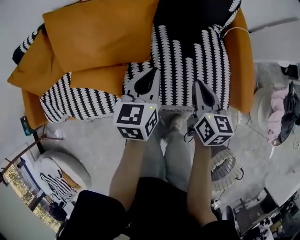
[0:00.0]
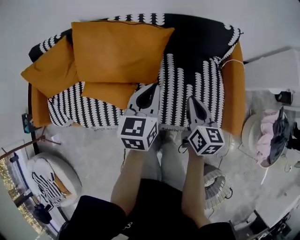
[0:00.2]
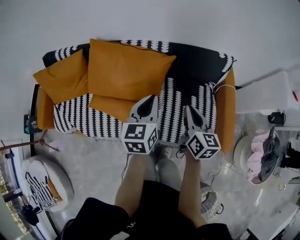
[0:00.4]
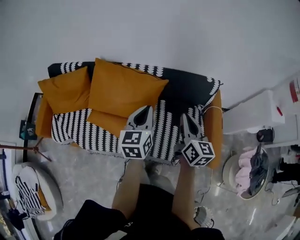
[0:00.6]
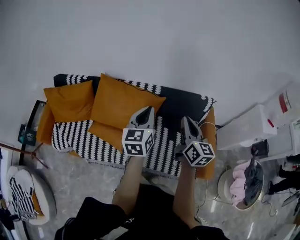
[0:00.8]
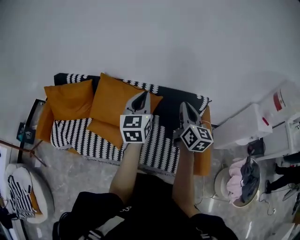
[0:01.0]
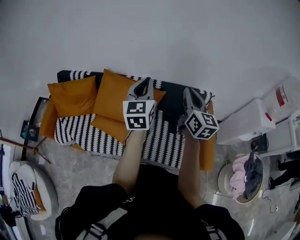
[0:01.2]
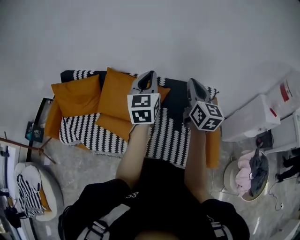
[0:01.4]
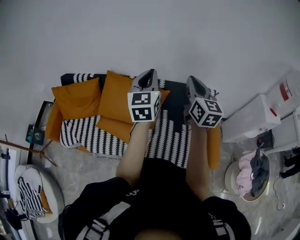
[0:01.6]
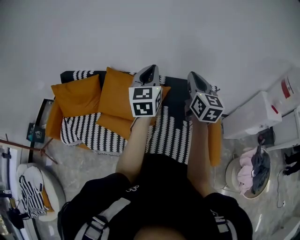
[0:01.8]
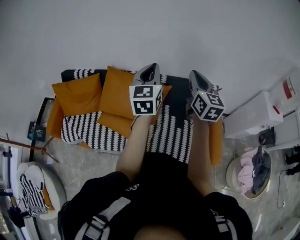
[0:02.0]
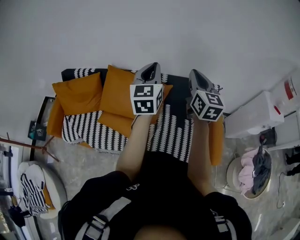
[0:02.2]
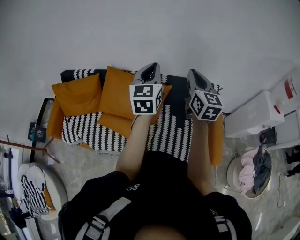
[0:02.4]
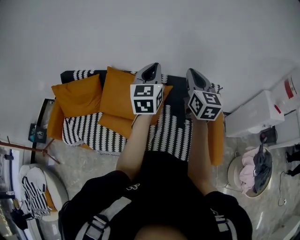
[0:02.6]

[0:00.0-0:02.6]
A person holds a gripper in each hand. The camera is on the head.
0.0 to 1.2 s: The grippers both shift upward by some 40 cm. The right gripper turns by some 30 degrees. The left gripper turns by some 40 degrees.
1.2 to 2.6 s: The grippers both shift forward by roughly 5 cm.

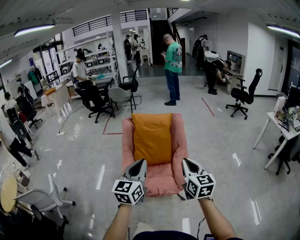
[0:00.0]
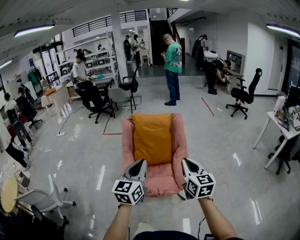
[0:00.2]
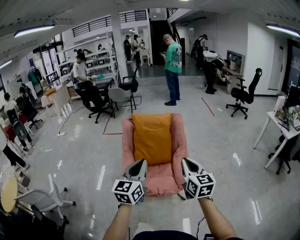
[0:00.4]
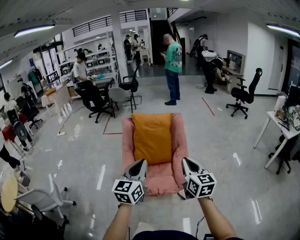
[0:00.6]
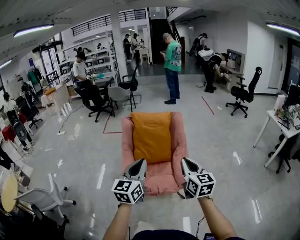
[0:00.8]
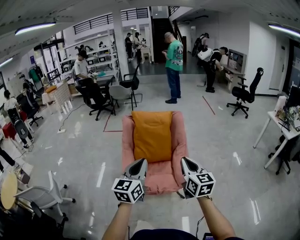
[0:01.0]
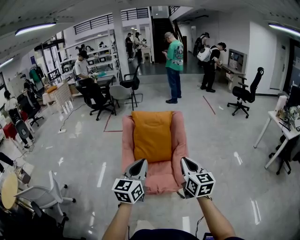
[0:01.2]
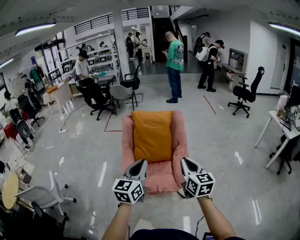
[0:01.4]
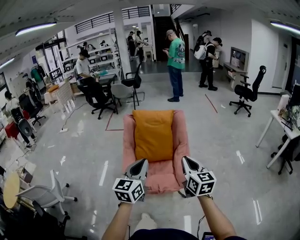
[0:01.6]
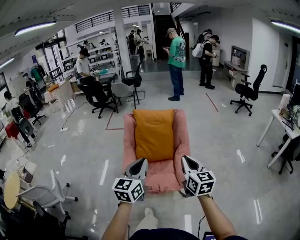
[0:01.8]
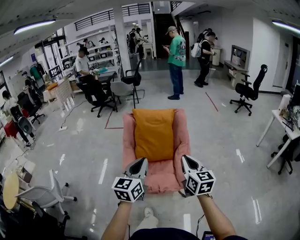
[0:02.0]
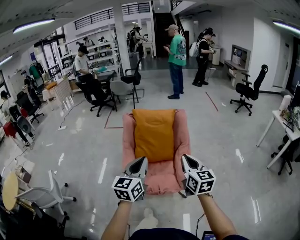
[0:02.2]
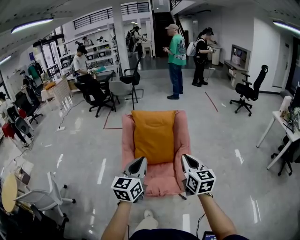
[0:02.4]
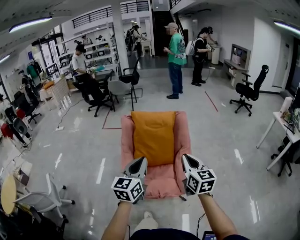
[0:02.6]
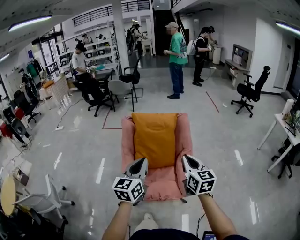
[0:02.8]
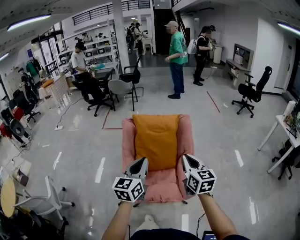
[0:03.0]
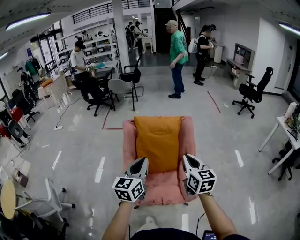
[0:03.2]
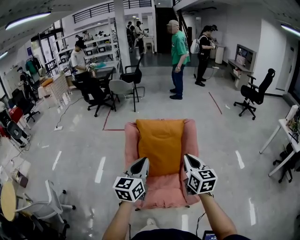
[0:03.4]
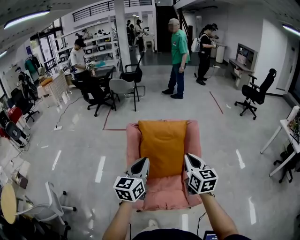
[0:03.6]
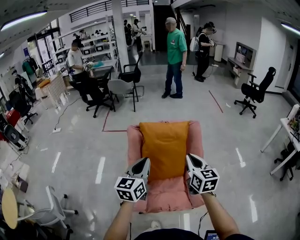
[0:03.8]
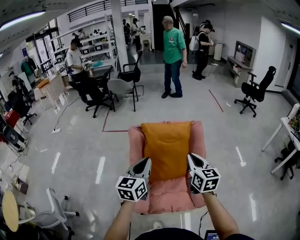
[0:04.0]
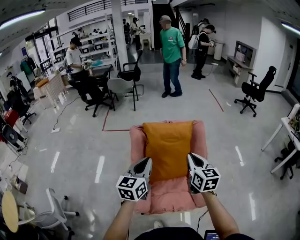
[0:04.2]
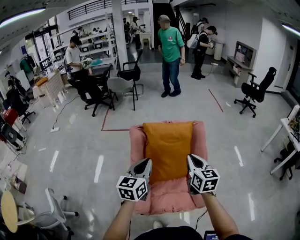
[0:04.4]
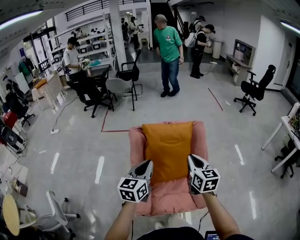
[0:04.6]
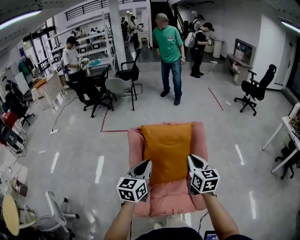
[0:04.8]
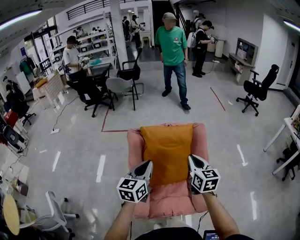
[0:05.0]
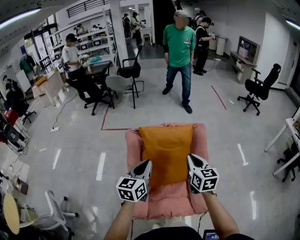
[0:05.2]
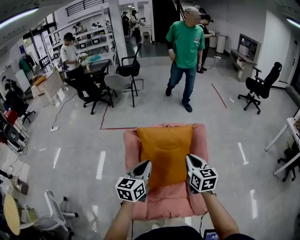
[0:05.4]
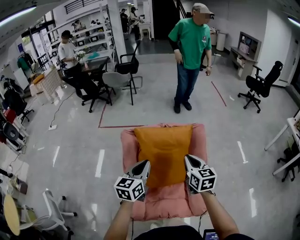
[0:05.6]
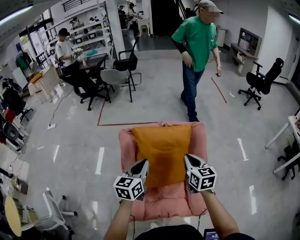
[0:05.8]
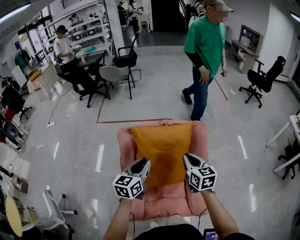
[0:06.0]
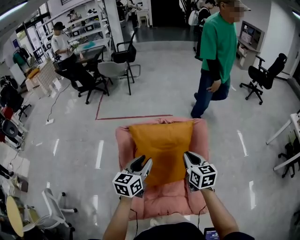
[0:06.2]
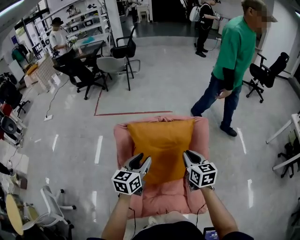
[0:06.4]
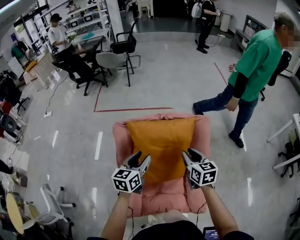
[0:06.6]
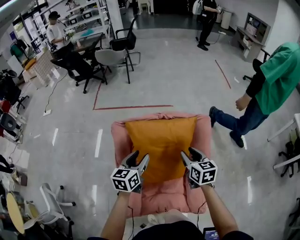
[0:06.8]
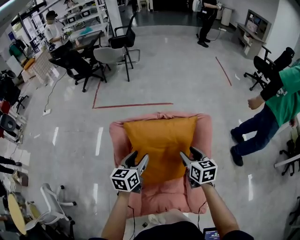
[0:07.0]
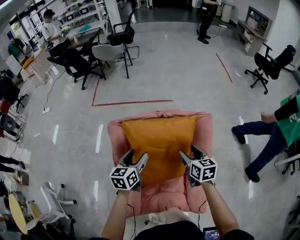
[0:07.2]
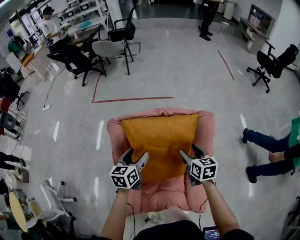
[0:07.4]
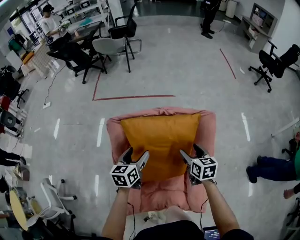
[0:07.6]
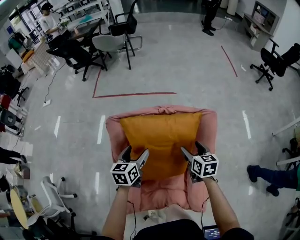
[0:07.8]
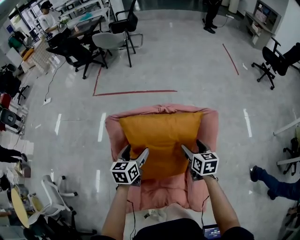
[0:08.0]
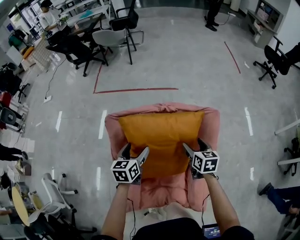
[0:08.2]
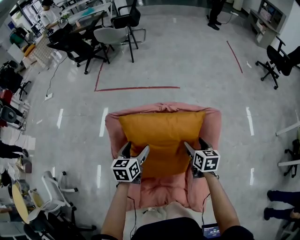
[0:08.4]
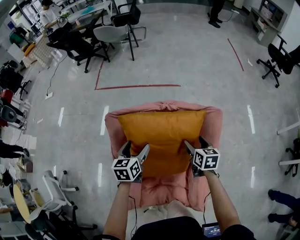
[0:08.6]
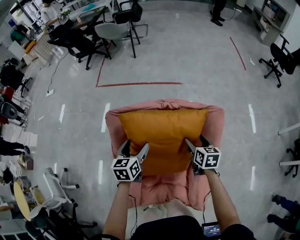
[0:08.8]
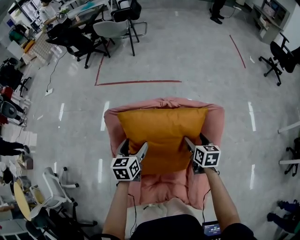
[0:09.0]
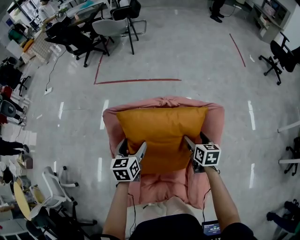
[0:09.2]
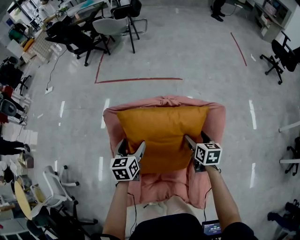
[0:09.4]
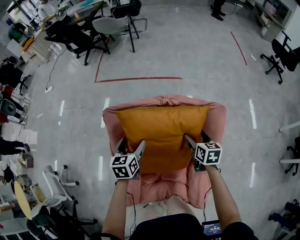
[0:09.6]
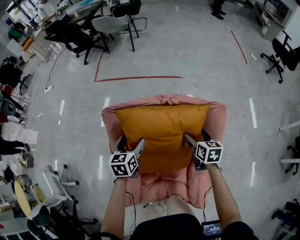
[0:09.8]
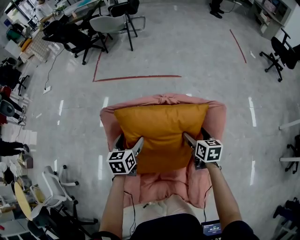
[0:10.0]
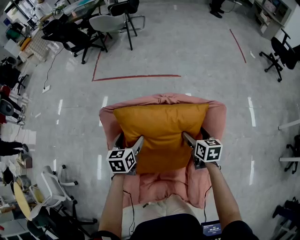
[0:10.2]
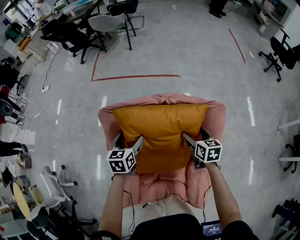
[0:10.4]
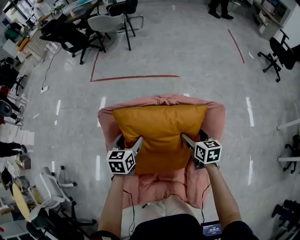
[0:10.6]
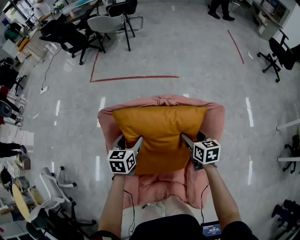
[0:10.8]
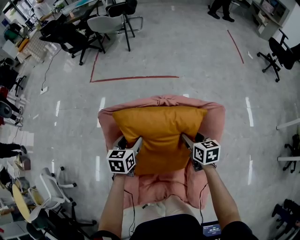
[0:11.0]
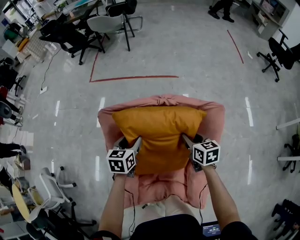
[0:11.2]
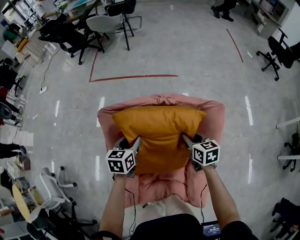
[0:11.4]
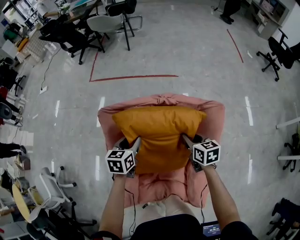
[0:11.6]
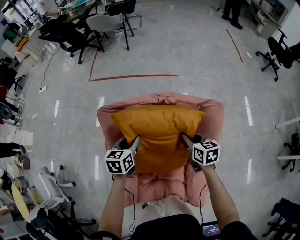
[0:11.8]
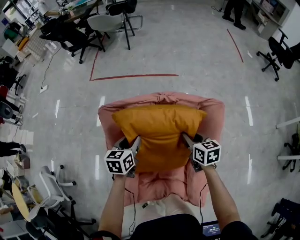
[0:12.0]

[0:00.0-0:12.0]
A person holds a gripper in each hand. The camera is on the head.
0.0 to 1.6 s: The grippers move only a little.
1.6 to 3.0 s: The grippers both shift forward by roughly 15 cm.
3.0 to 4.4 s: The grippers both shift forward and to the left by roughly 15 cm.
4.4 to 6.0 s: The two grippers go roughly 15 cm forward and downward.
6.0 to 7.6 s: Both grippers move downward and forward, some 15 cm. The right gripper opens its fingers; the left gripper opens up.
7.6 to 9.0 s: The right gripper travels downward and forward by approximately 10 cm.
9.0 to 10.4 s: The grippers make only small movements.
10.4 to 12.0 s: The right gripper closes up. The left gripper closes up.

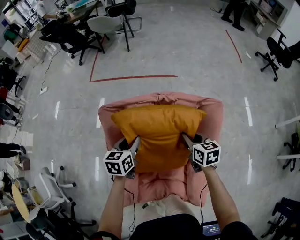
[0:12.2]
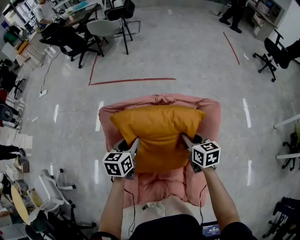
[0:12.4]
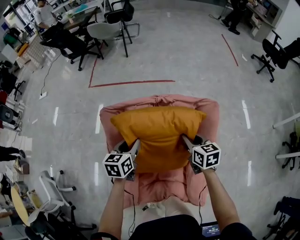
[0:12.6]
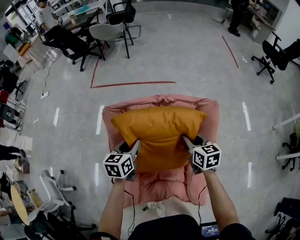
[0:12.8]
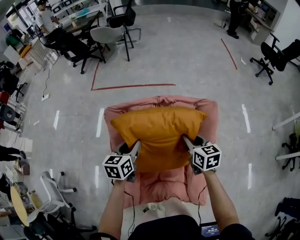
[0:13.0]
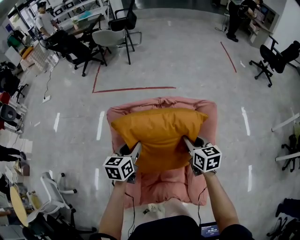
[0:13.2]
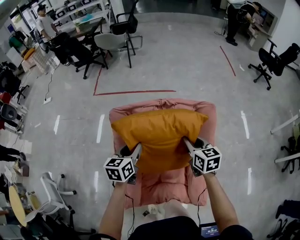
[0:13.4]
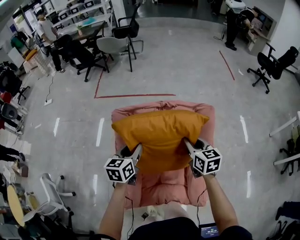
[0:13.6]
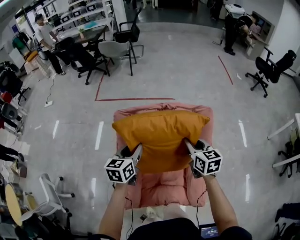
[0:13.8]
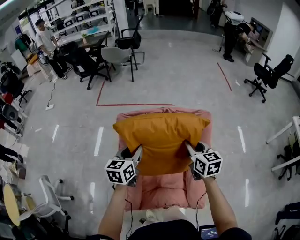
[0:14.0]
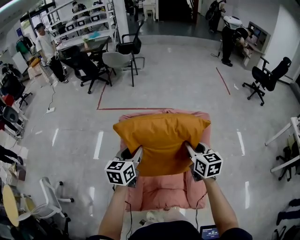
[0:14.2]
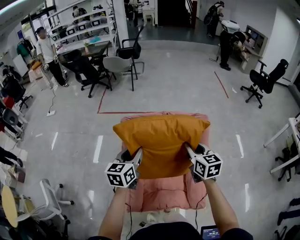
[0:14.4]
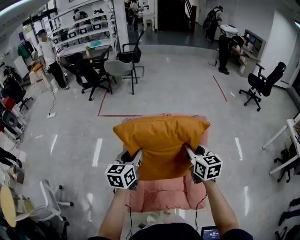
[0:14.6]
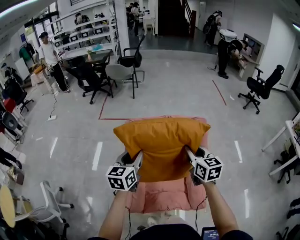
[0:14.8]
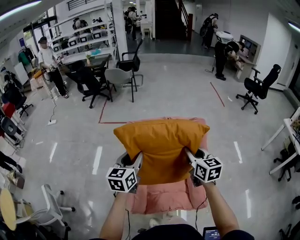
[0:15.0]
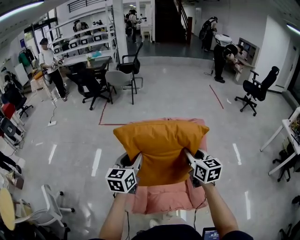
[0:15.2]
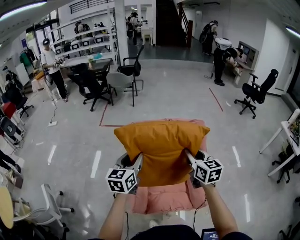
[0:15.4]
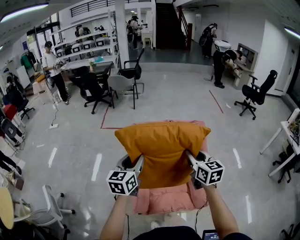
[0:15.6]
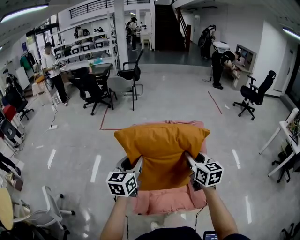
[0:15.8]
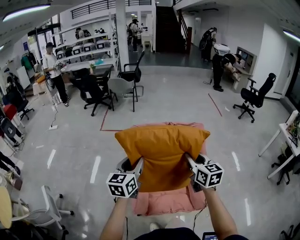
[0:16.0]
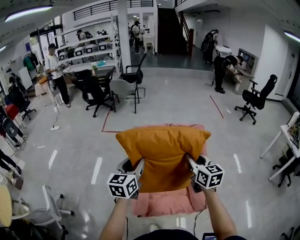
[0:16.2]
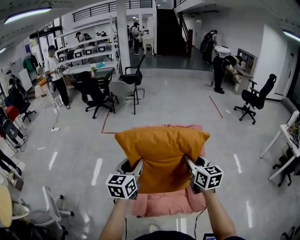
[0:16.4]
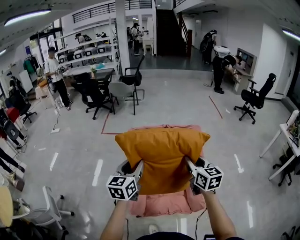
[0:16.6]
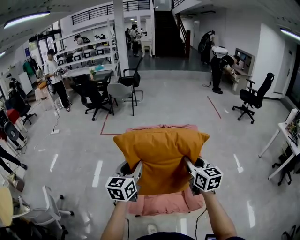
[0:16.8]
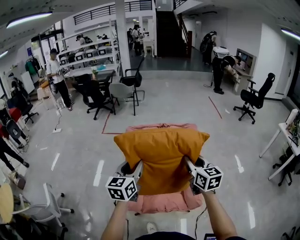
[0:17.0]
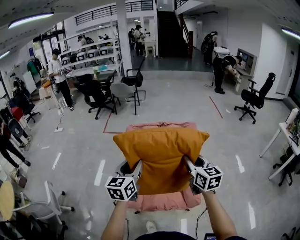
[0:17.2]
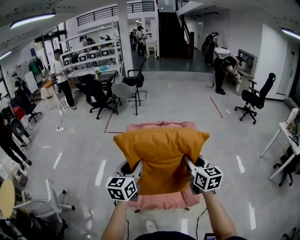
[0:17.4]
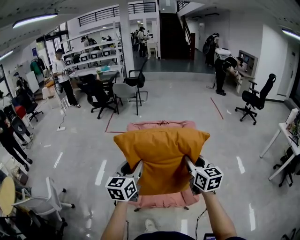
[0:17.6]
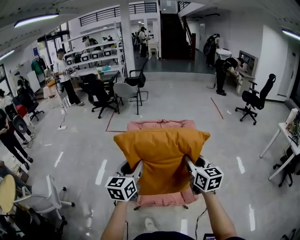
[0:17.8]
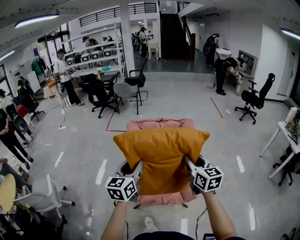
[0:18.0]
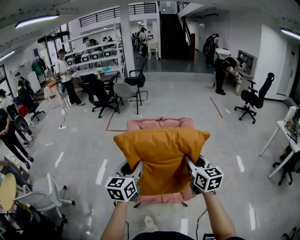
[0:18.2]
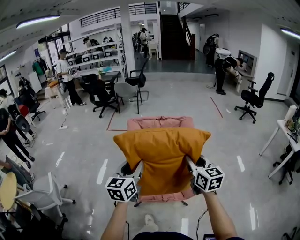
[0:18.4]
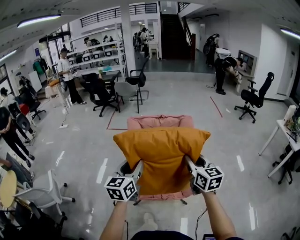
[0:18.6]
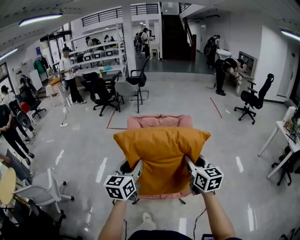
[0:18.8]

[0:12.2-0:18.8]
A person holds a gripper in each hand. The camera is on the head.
12.2 to 13.8 s: The grippers both shift upward and backward by some 15 cm.
13.8 to 15.4 s: The right gripper moves backward and upward, roughly 20 cm. Meanwhile the left gripper moves backward, upward and to the left, roughly 20 cm.
15.4 to 17.2 s: The two grippers go about 15 cm backward and to the right.
17.2 to 18.8 s: Both grippers move backward, approximately 15 cm.

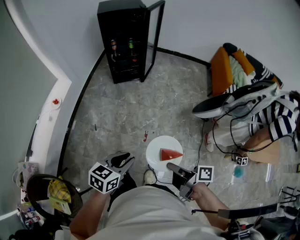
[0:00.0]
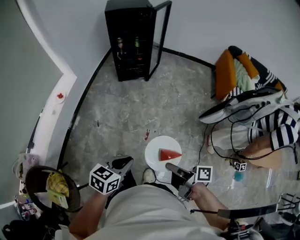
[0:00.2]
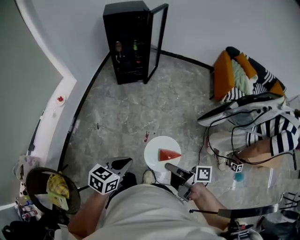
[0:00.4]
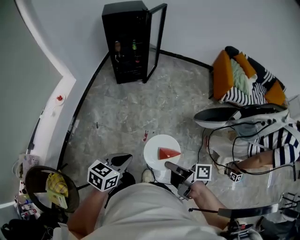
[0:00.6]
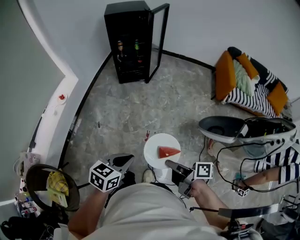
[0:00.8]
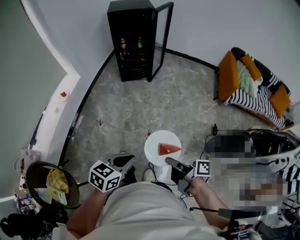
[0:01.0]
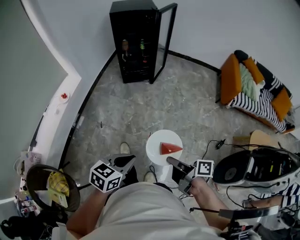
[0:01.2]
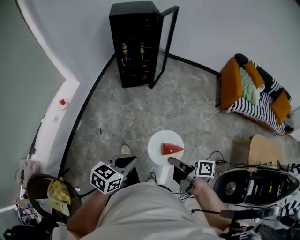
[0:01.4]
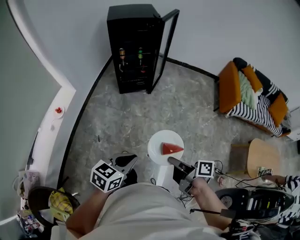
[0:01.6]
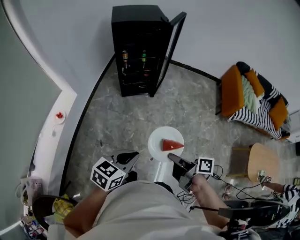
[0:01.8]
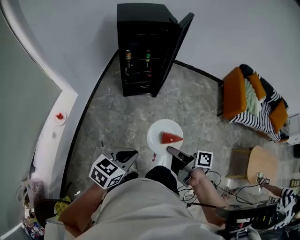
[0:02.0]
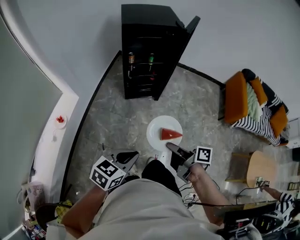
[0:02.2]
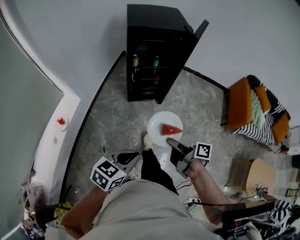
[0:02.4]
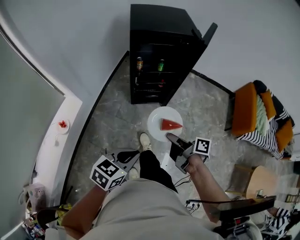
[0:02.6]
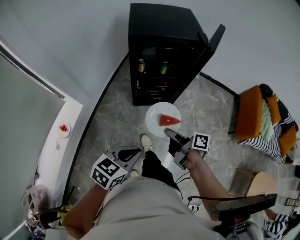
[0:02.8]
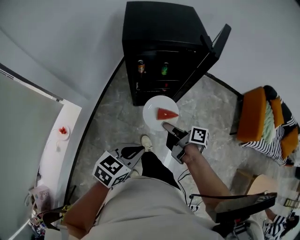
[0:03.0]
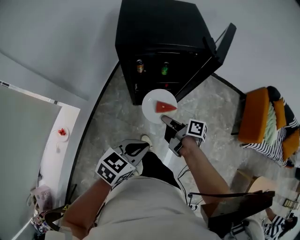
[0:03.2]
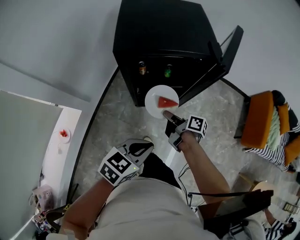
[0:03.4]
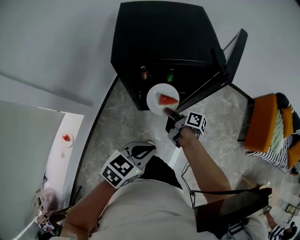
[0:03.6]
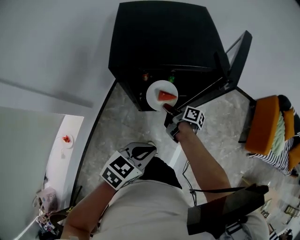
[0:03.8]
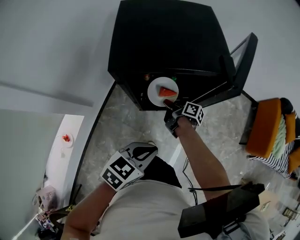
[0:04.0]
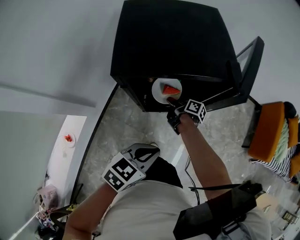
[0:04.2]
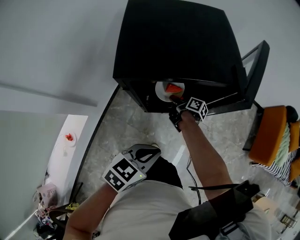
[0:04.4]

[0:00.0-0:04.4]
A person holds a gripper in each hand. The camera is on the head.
0.0 to 1.4 s: The left gripper heads forward, covering some 5 cm, and closes its fingers. The right gripper heads forward, covering roughly 10 cm.
1.4 to 3.0 s: The two grippers travel together, forward, approximately 60 cm.
3.0 to 4.4 s: The left gripper travels forward by some 20 cm; the right gripper shifts approximately 35 cm forward and downward.
